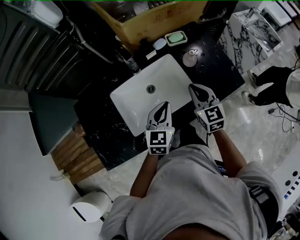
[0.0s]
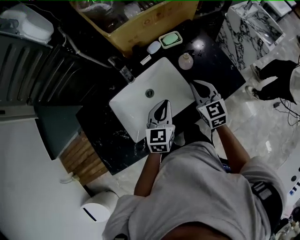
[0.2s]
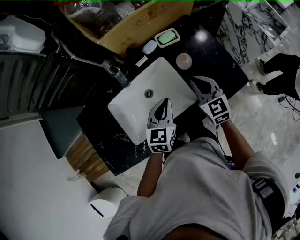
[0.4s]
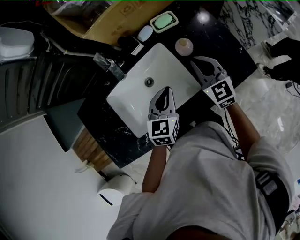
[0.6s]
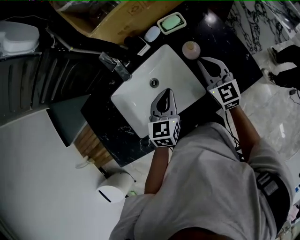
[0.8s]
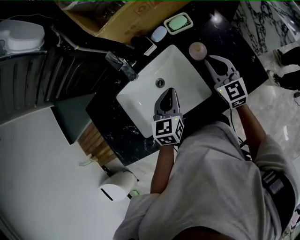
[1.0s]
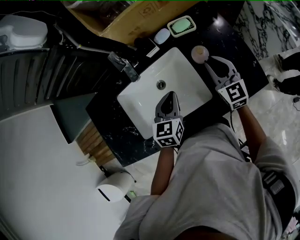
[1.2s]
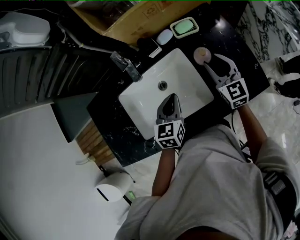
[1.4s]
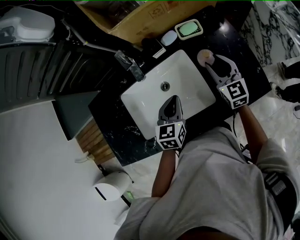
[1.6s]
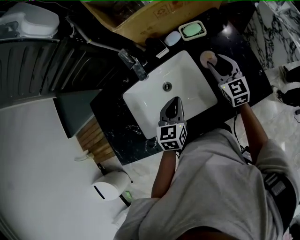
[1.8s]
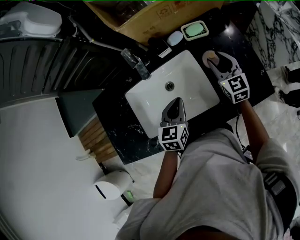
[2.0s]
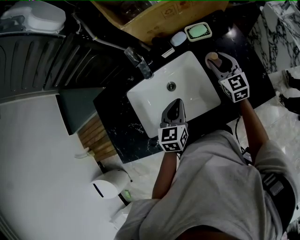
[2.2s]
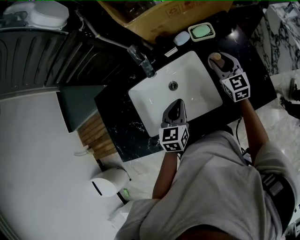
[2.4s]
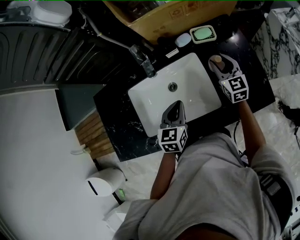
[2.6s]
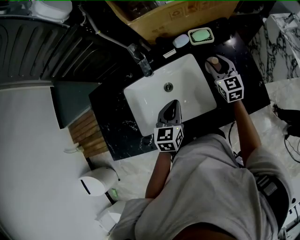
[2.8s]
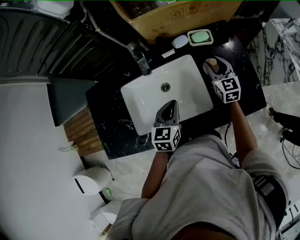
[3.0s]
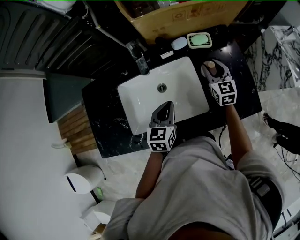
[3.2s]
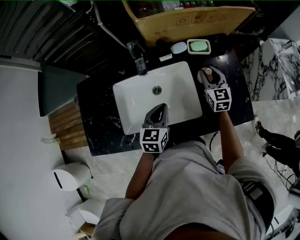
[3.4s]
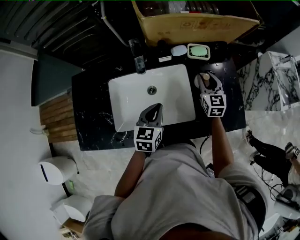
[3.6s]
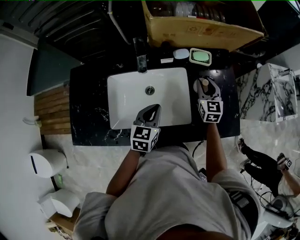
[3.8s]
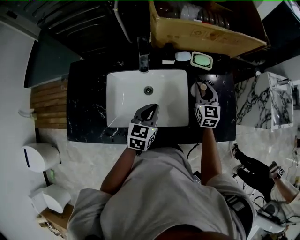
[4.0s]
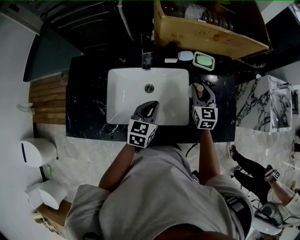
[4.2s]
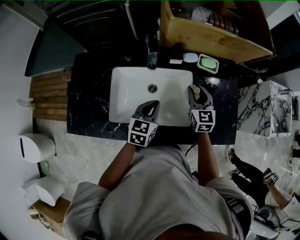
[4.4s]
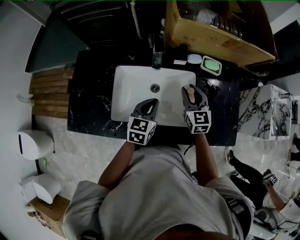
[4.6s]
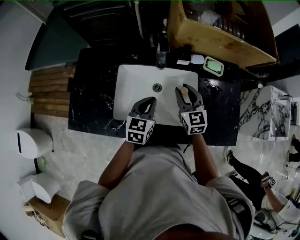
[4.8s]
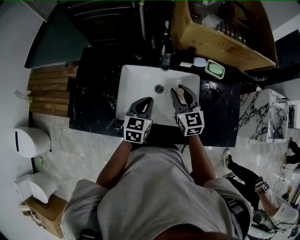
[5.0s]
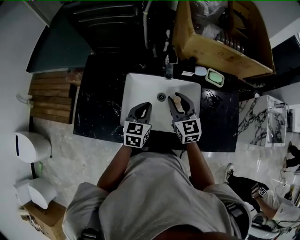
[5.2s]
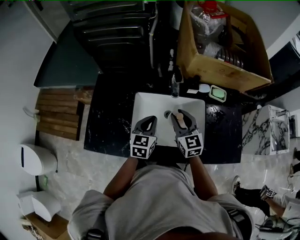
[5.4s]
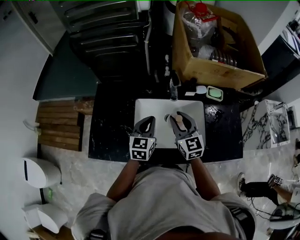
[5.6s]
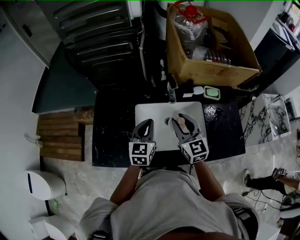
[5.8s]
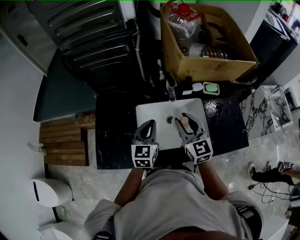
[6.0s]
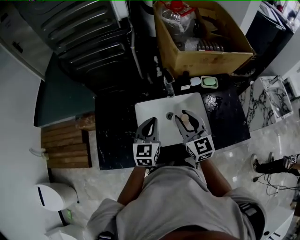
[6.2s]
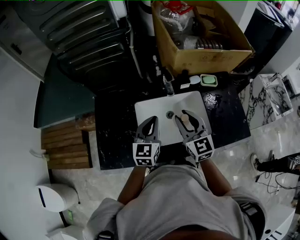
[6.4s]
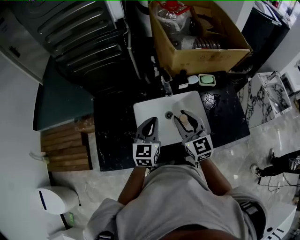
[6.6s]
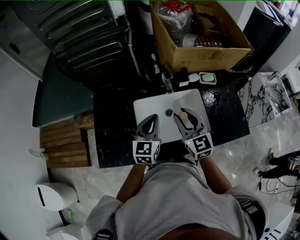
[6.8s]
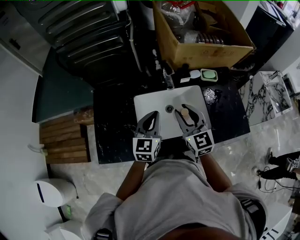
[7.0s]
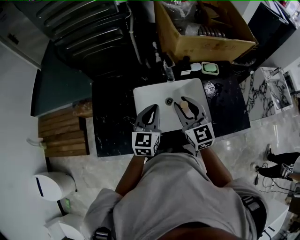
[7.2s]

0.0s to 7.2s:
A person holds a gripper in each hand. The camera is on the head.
0.0s to 1.4s: The left gripper moves forward and downward, approximately 10 cm. Meanwhile the right gripper shifts approximately 20 cm forward, to the right and downward, and opens its fingers.
1.4s to 2.8s: The right gripper moves forward, some 5 cm.
2.8s to 4.4s: The right gripper heads to the left, covering about 5 cm.
4.4s to 5.8s: The grippers both shift to the left and upward by roughly 20 cm.
5.8s to 7.2s: There are only small adjustments of the grippers.

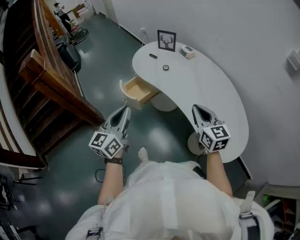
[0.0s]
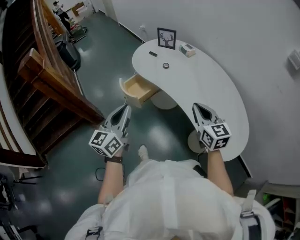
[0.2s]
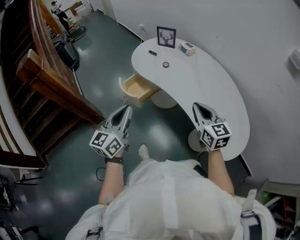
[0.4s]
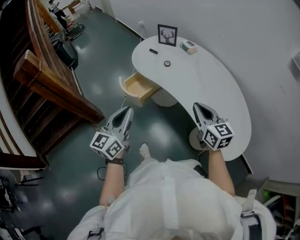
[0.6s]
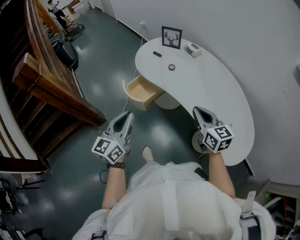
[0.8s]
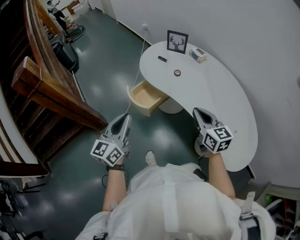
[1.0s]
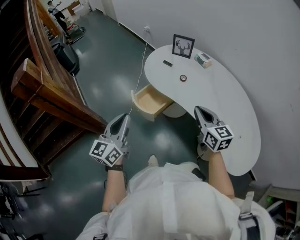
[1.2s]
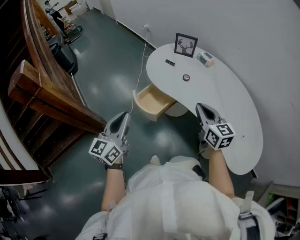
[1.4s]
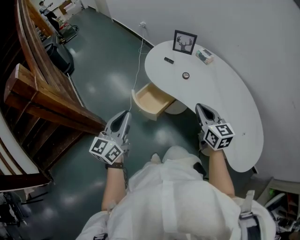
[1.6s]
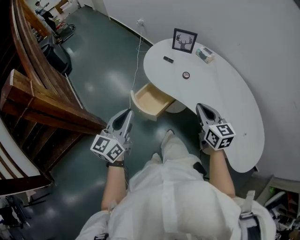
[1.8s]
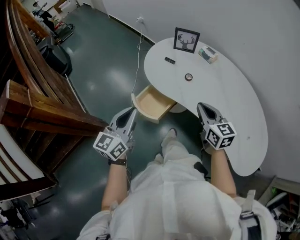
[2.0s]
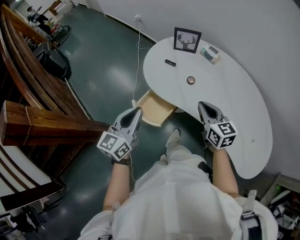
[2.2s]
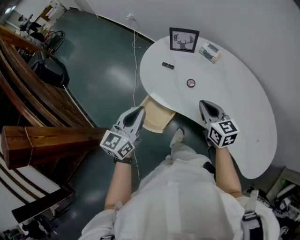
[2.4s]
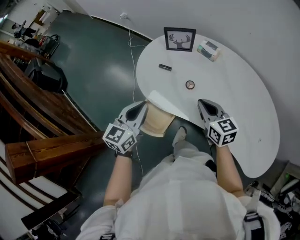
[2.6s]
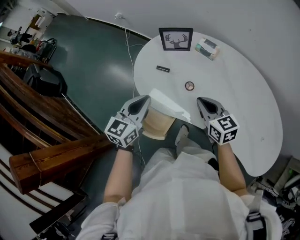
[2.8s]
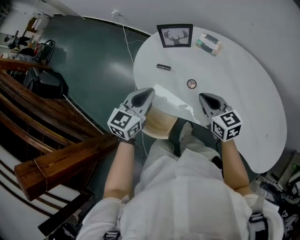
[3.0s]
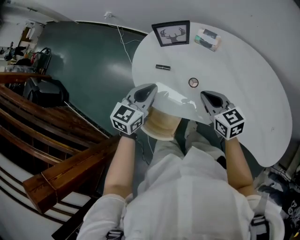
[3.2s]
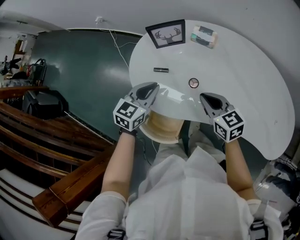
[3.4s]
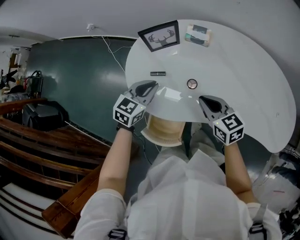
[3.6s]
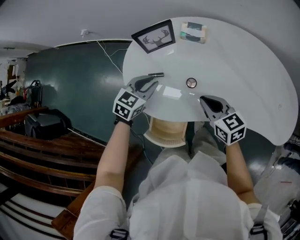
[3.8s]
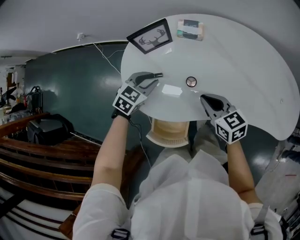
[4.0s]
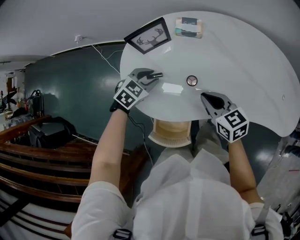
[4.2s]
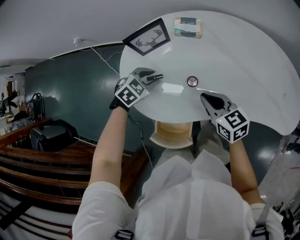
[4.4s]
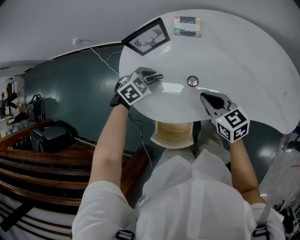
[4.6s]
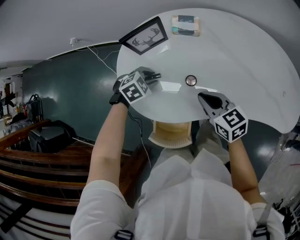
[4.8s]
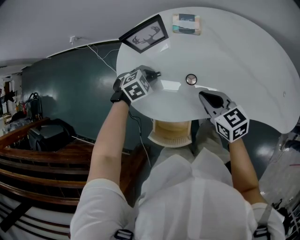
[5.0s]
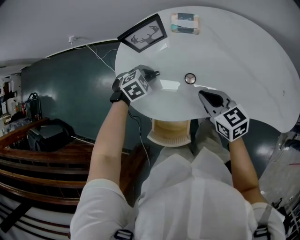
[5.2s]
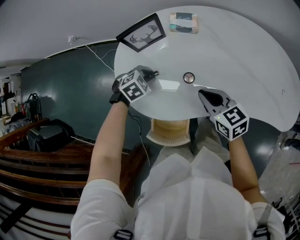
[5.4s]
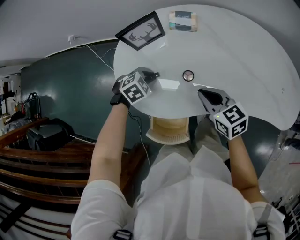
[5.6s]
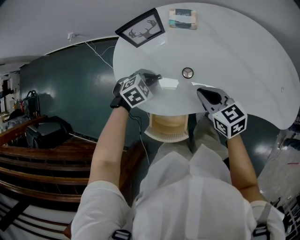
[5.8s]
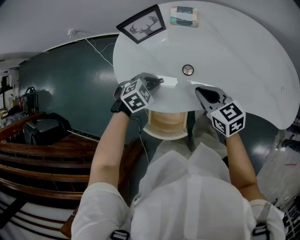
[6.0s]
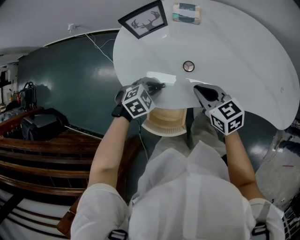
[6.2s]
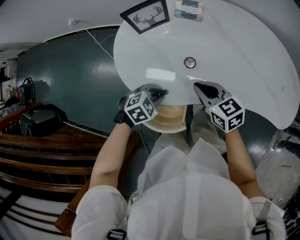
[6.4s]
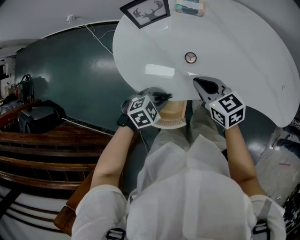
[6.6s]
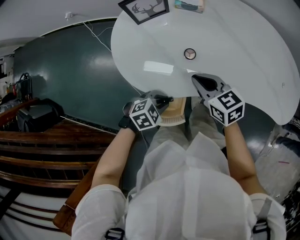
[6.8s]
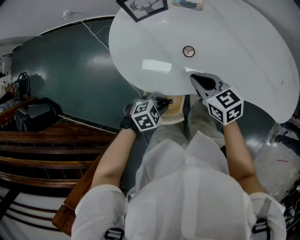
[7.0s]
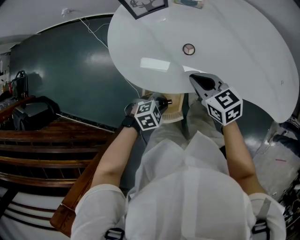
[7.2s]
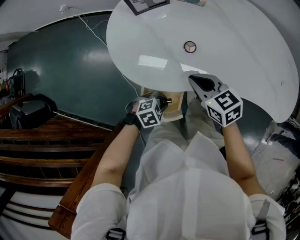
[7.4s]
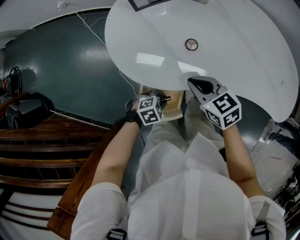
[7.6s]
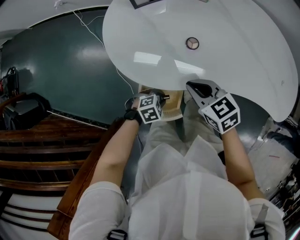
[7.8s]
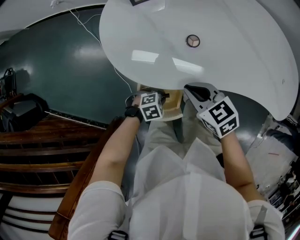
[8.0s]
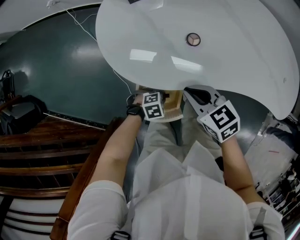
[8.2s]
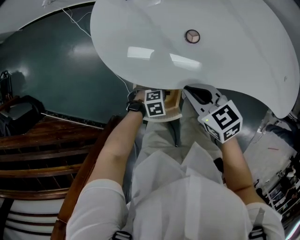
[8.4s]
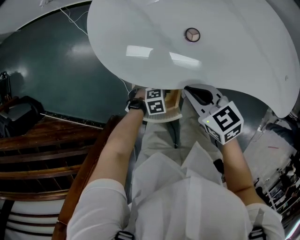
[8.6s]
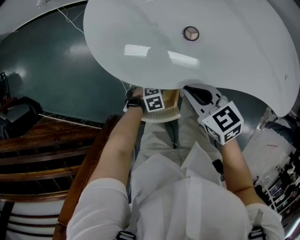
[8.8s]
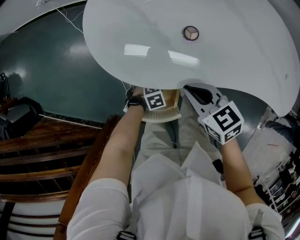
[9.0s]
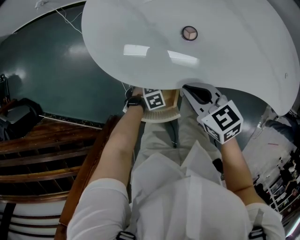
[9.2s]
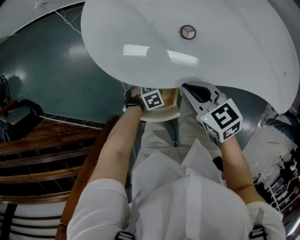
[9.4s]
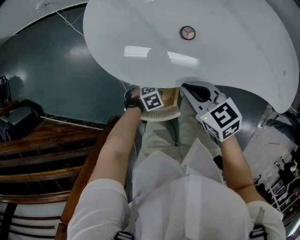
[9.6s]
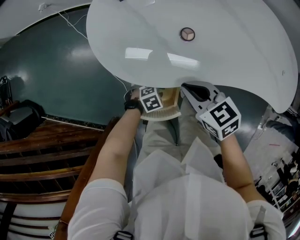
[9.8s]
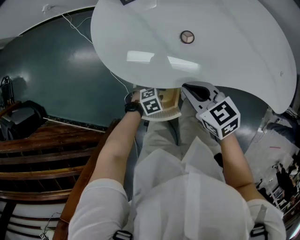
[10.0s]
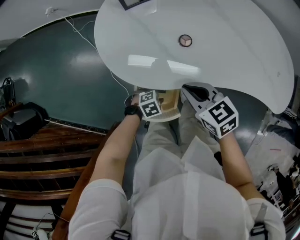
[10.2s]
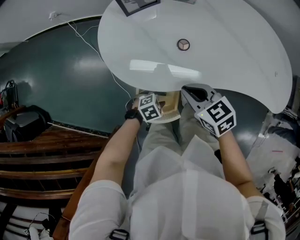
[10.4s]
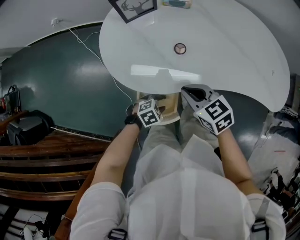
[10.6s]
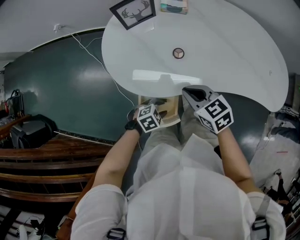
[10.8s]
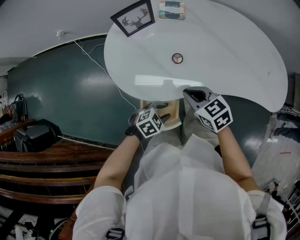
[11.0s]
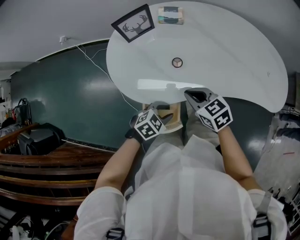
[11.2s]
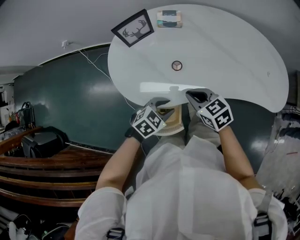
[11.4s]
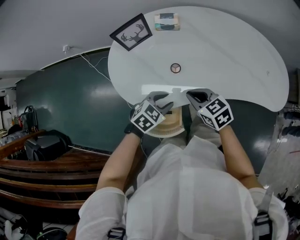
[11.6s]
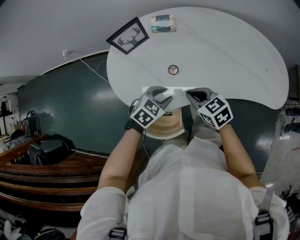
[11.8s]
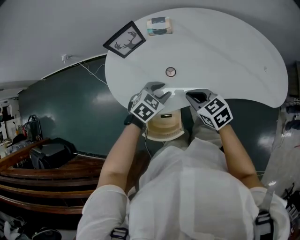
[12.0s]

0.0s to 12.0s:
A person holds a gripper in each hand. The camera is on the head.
0.0s to 1.6s: The right gripper is displaced forward and to the left by approximately 20 cm. The left gripper heads to the left and forward, covering some 25 cm.
1.6s to 3.0s: The right gripper shifts roughly 25 cm forward and downward. Meanwhile the left gripper moves forward, some 35 cm, and swivels some 40 degrees.
3.0s to 4.4s: The left gripper goes roughly 15 cm downward, points its fingers approximately 40 degrees further downward, and opens up; the right gripper is displaced downward by roughly 5 cm.
4.4s to 6.0s: The left gripper goes some 10 cm backward.
6.0s to 7.6s: The right gripper changes place by approximately 10 cm. Meanwhile the left gripper shifts by about 25 cm.
7.6s to 9.0s: The left gripper heads downward, covering roughly 15 cm.
9.0s to 10.4s: The left gripper travels upward by approximately 10 cm.
10.4s to 12.0s: The right gripper changes place by about 10 cm. Meanwhile the left gripper heads upward, covering about 20 cm.

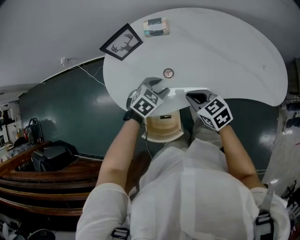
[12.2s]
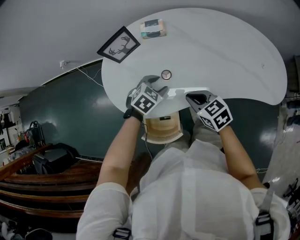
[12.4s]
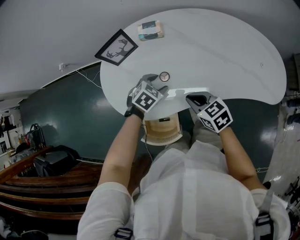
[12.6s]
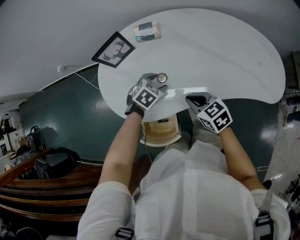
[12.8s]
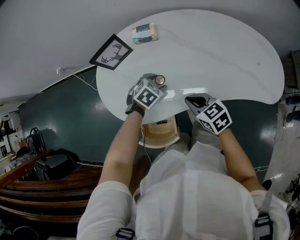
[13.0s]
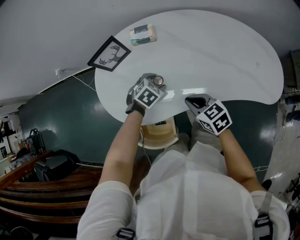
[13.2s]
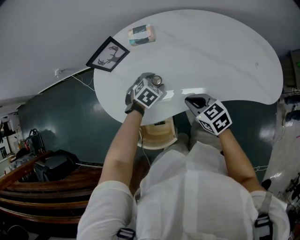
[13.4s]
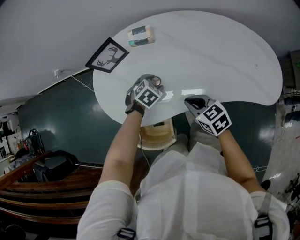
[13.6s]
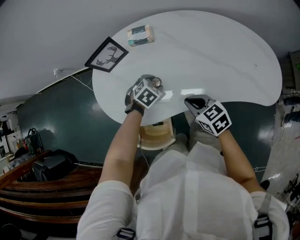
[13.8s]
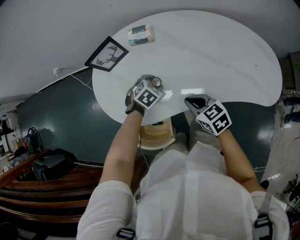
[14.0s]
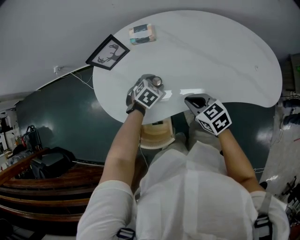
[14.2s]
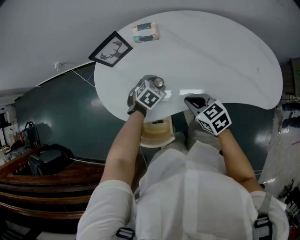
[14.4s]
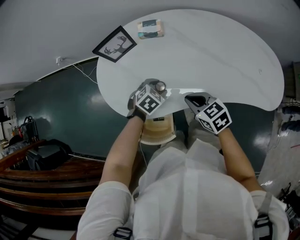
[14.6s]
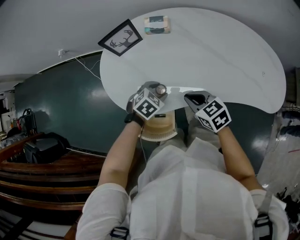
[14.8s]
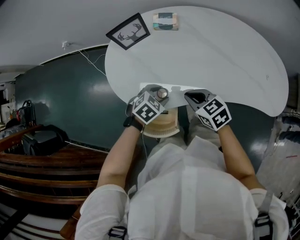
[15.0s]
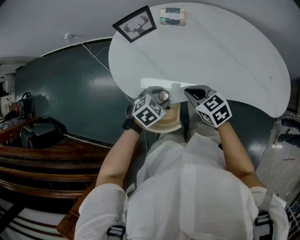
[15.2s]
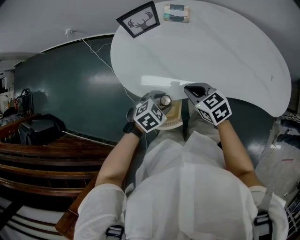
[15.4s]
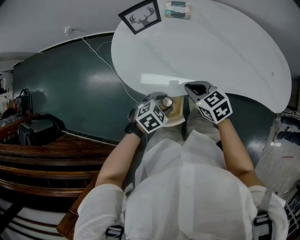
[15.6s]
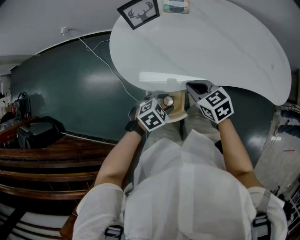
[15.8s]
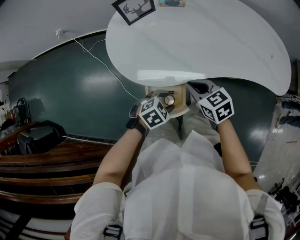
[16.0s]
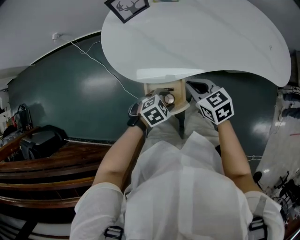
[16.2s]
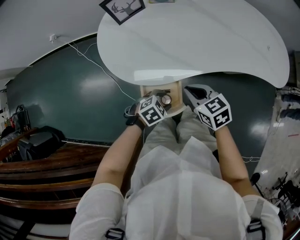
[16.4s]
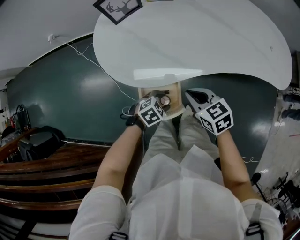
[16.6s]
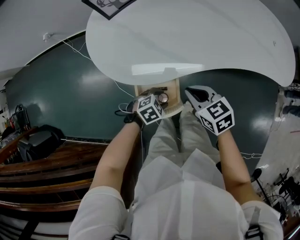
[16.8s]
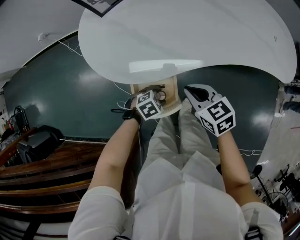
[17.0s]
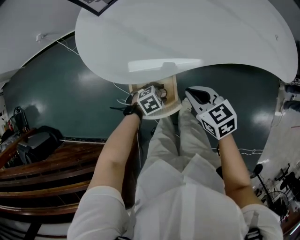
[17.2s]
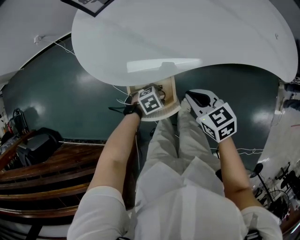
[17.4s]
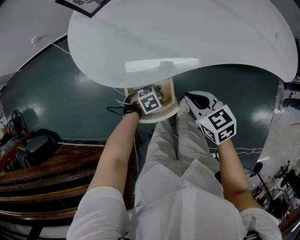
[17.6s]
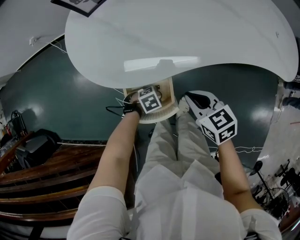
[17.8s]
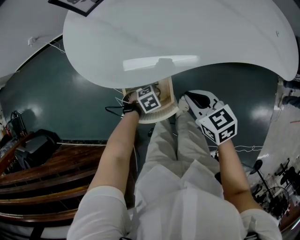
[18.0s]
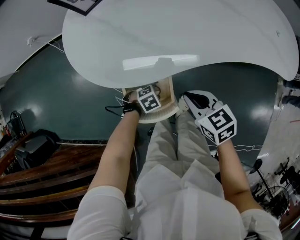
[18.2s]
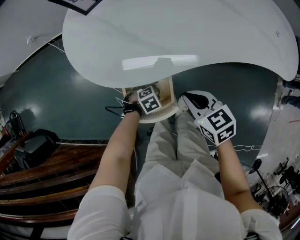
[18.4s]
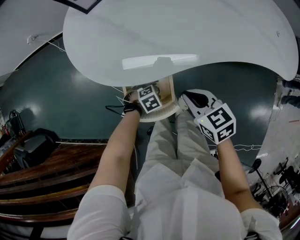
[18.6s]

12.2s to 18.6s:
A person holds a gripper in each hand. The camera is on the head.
12.2s to 13.8s: The left gripper travels forward and downward by roughly 10 cm. The right gripper is displaced to the right by some 5 cm.
13.8s to 15.4s: The right gripper travels to the left by some 10 cm; the left gripper heads backward, covering about 20 cm.
15.4s to 17.0s: The right gripper shifts by roughly 15 cm. The left gripper is displaced downward by approximately 20 cm, and swivels roughly 20 degrees.
17.0s to 18.6s: The left gripper is displaced downward by about 10 cm.
